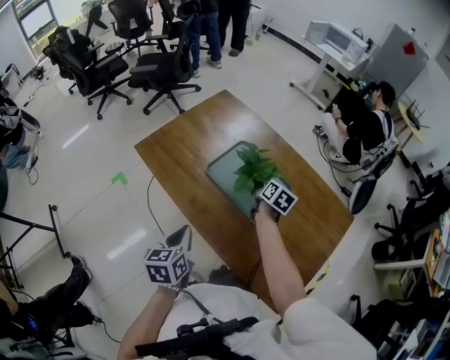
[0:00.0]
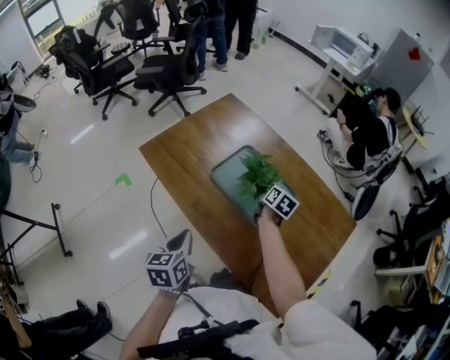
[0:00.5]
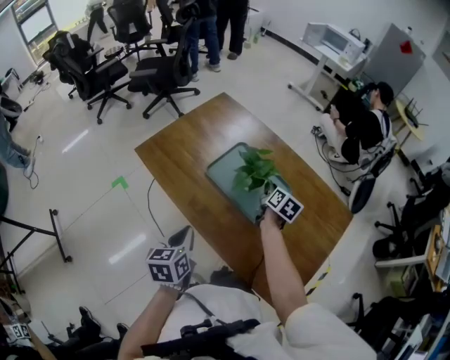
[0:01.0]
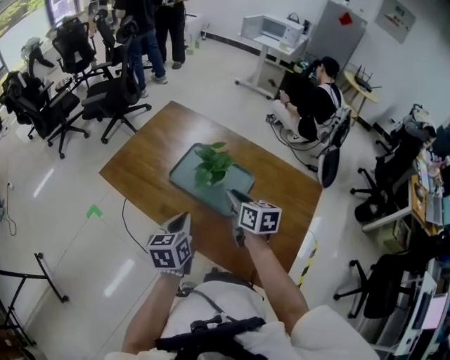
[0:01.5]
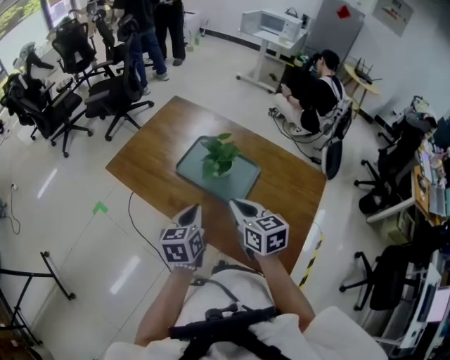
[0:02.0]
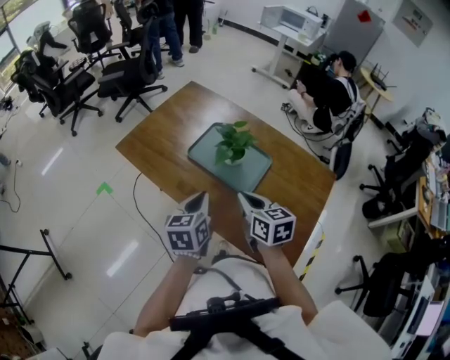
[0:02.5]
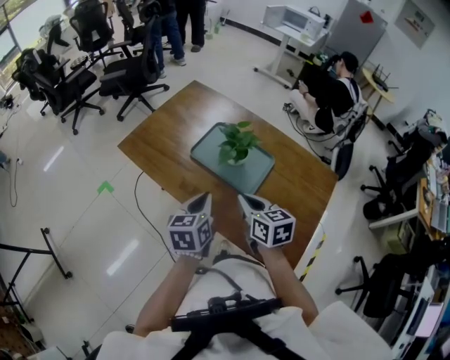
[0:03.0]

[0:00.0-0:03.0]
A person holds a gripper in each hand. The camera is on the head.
0:00.0 to 0:01.5: The right gripper is displaced backward and upward by about 20 cm, and rotates some 20 degrees, while the left gripper moves to the right, roughly 5 cm.
0:01.5 to 0:03.0: The right gripper shifts approximately 10 cm backward and to the left, and closes its fingers.

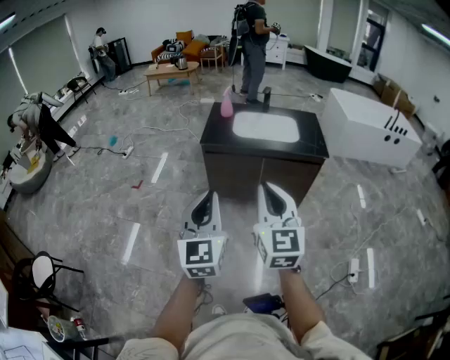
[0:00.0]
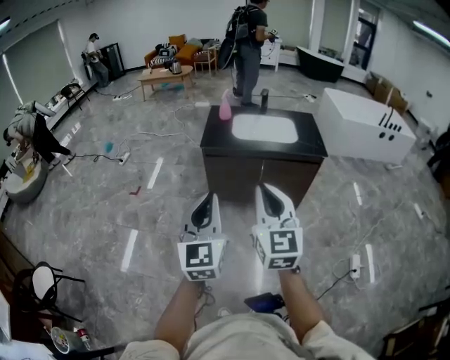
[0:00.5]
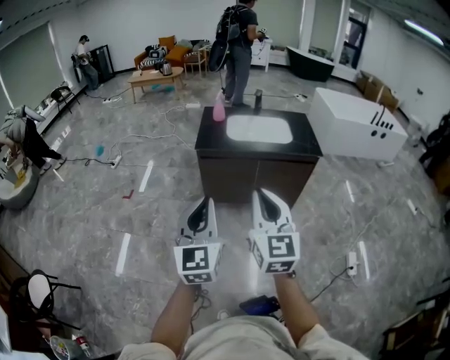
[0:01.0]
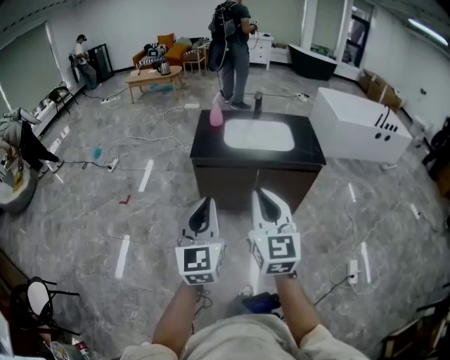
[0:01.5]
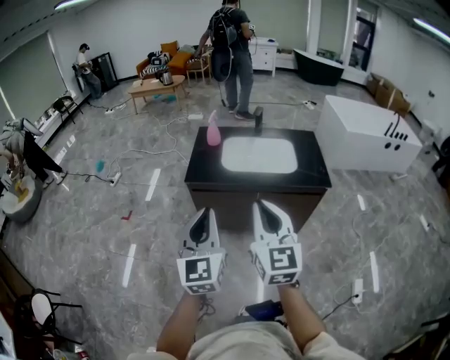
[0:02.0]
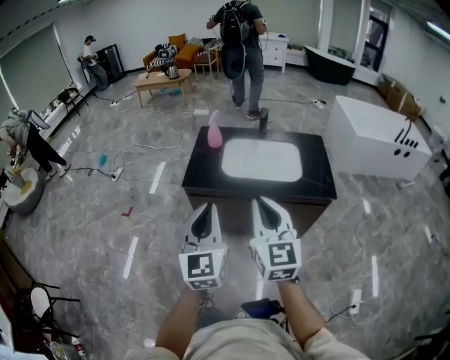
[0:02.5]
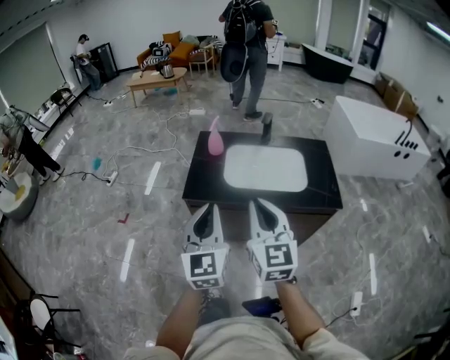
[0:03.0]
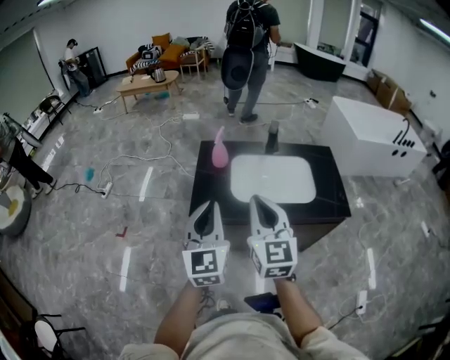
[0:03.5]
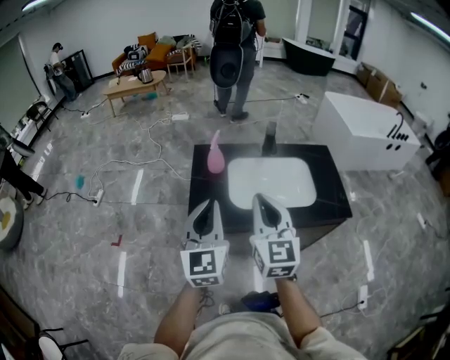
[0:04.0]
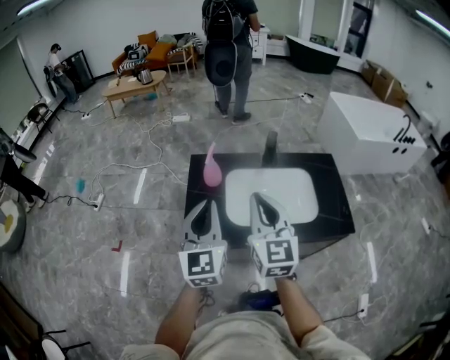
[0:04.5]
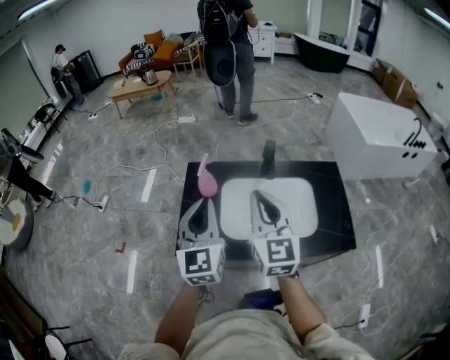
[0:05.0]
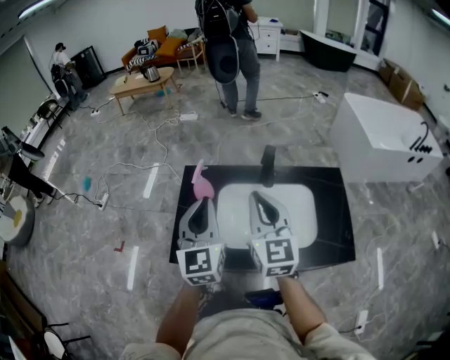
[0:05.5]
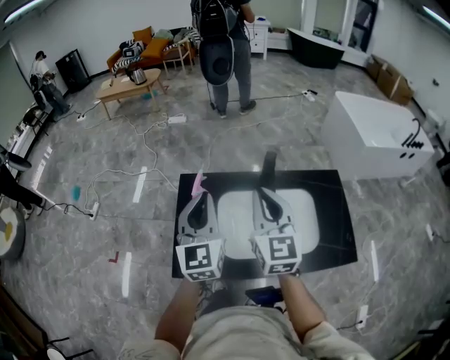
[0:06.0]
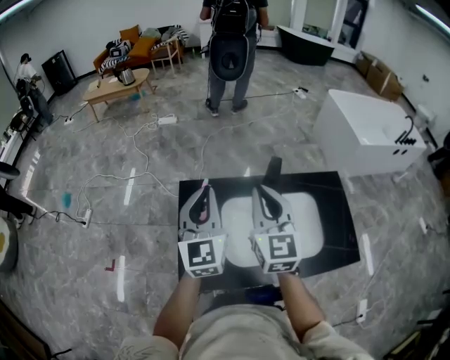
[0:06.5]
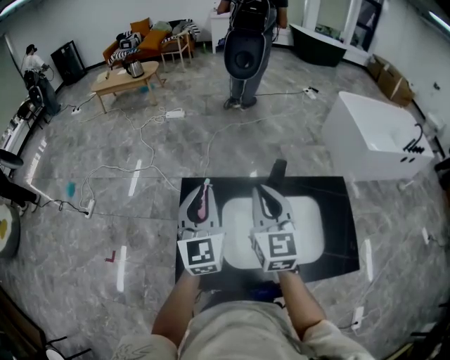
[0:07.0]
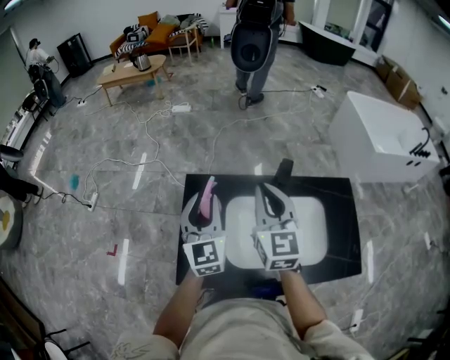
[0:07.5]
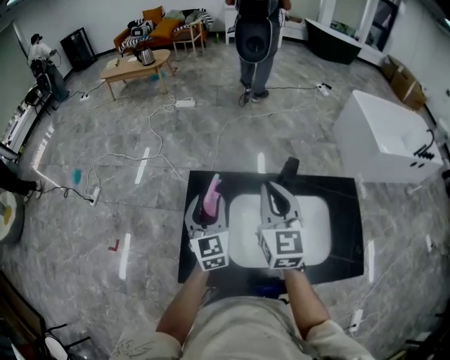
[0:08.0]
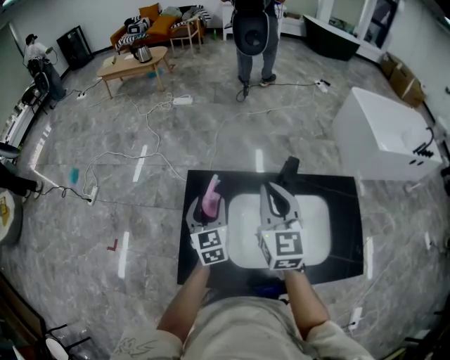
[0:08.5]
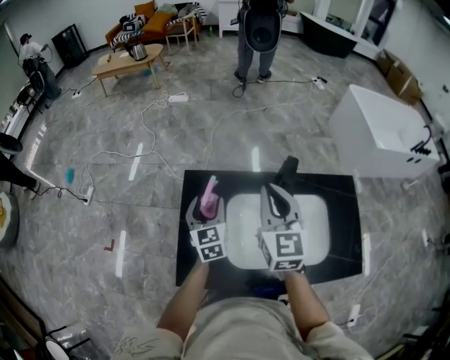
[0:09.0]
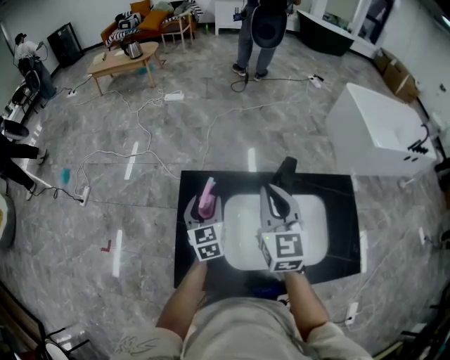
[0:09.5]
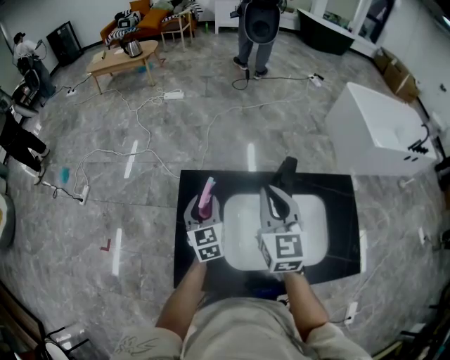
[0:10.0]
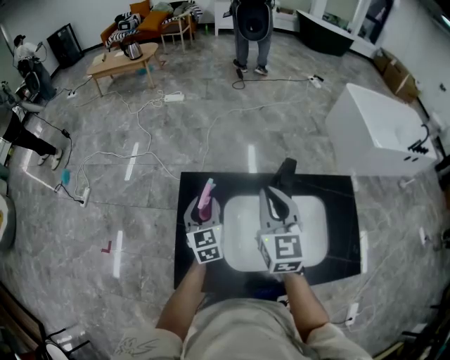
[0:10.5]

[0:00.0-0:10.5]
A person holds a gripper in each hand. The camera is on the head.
0:00.0 to 0:02.0: The grippers both shift forward by roughly 20 cm.
0:02.0 to 0:04.0: Both grippers travel together forward, about 30 cm.
0:04.0 to 0:06.5: The two grippers go about 30 cm forward.
0:06.5 to 0:08.5: The left gripper is displaced downward by approximately 20 cm, rotates roughly 20 degrees, and opens up. The right gripper moves roughly 5 cm.
0:08.5 to 0:10.5: The left gripper closes.

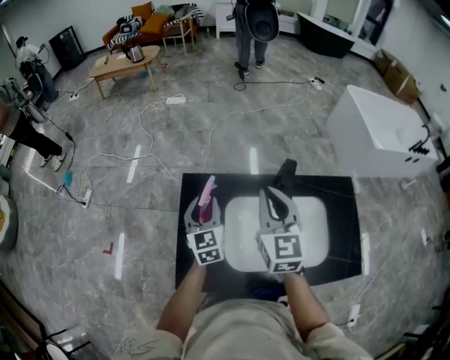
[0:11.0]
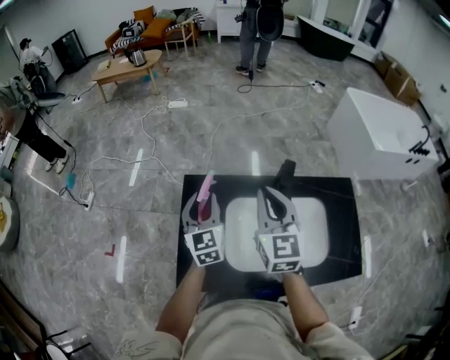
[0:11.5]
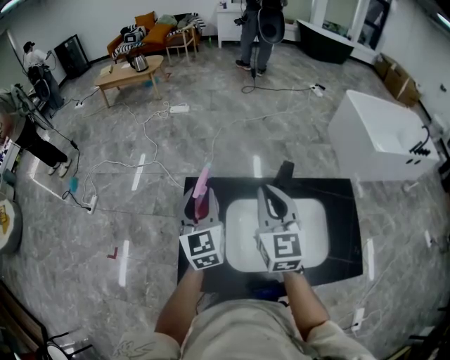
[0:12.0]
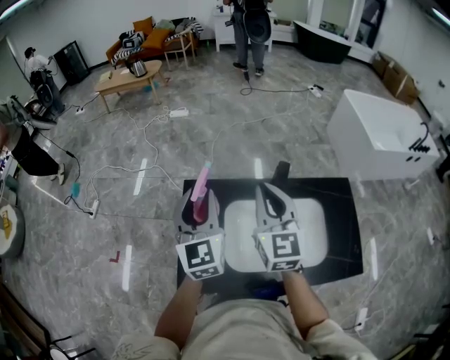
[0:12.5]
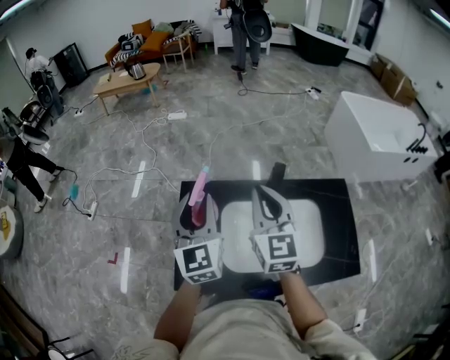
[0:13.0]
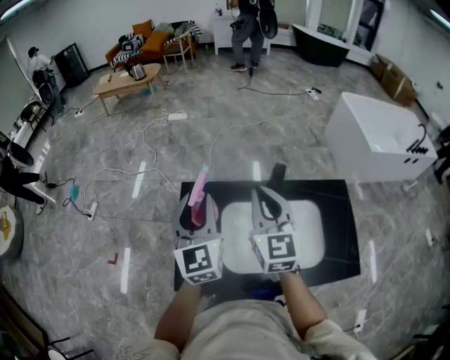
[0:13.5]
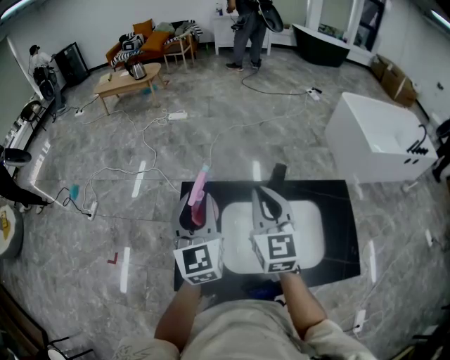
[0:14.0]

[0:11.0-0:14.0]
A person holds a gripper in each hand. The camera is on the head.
0:11.0 to 0:12.5: The left gripper shifts about 15 cm upward.
0:12.5 to 0:14.0: The two grippers keep their place.

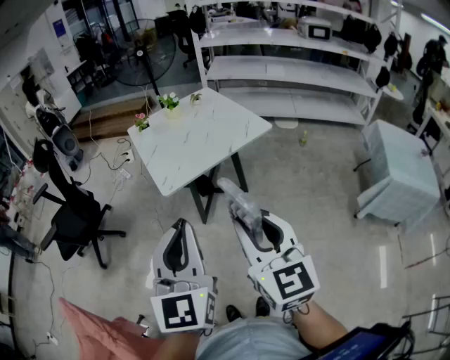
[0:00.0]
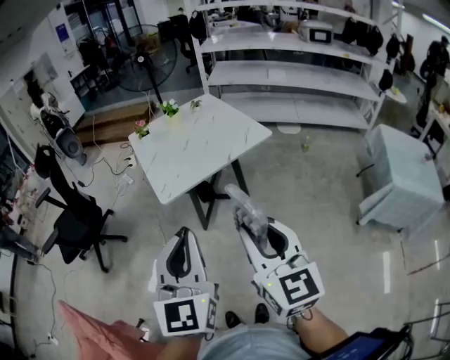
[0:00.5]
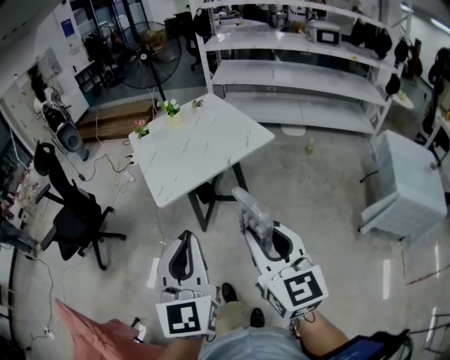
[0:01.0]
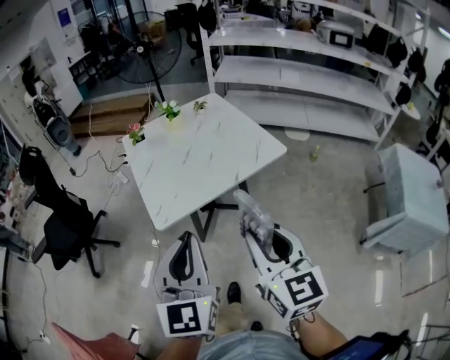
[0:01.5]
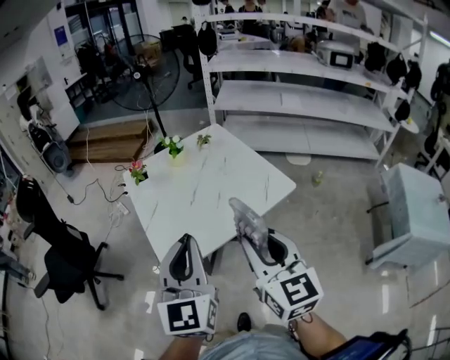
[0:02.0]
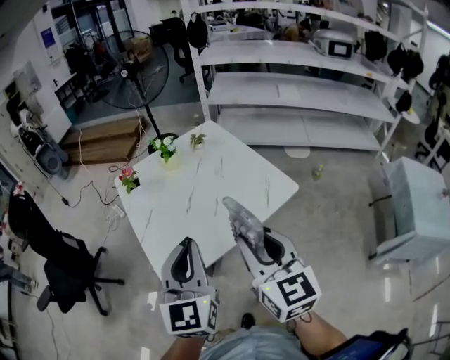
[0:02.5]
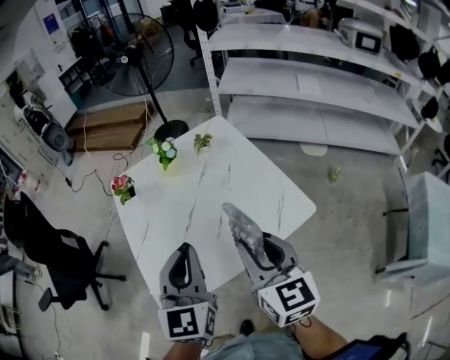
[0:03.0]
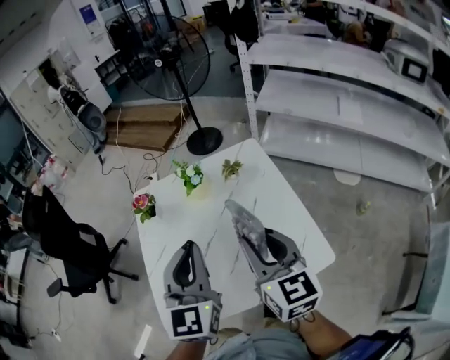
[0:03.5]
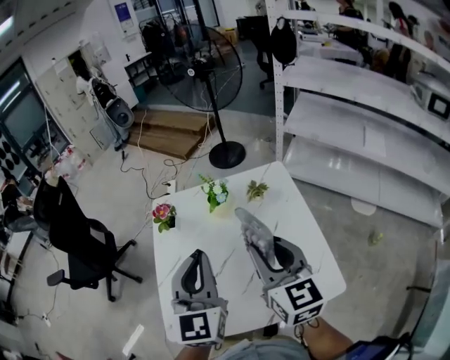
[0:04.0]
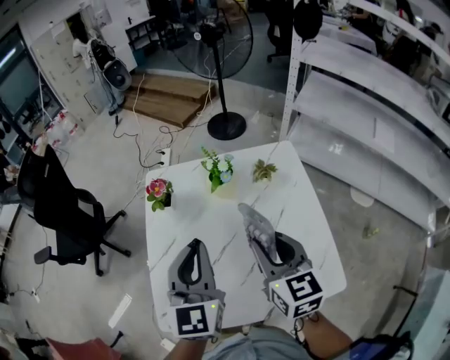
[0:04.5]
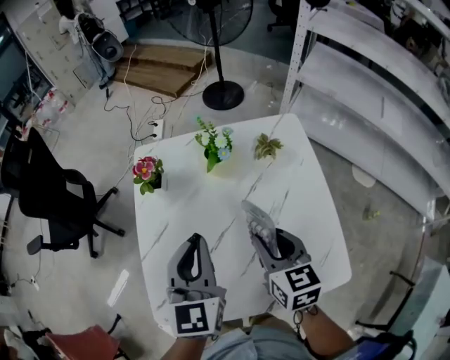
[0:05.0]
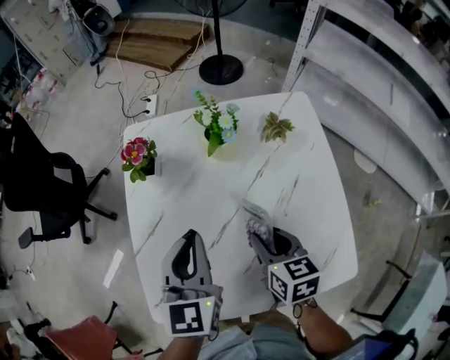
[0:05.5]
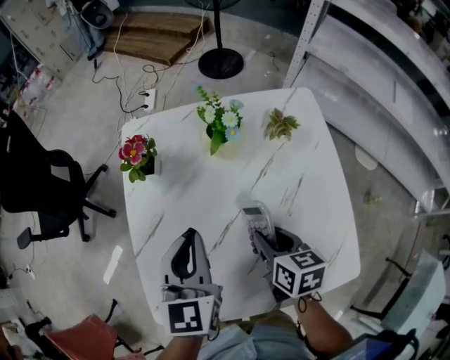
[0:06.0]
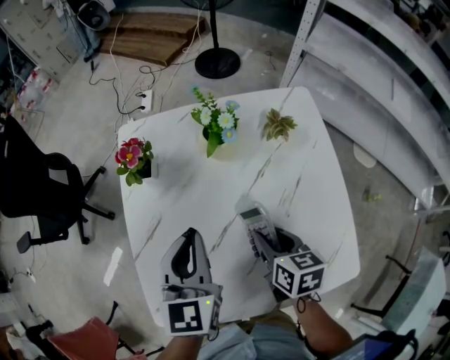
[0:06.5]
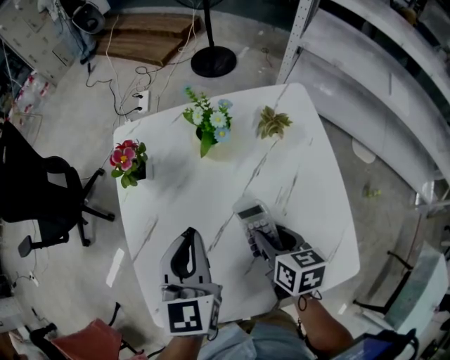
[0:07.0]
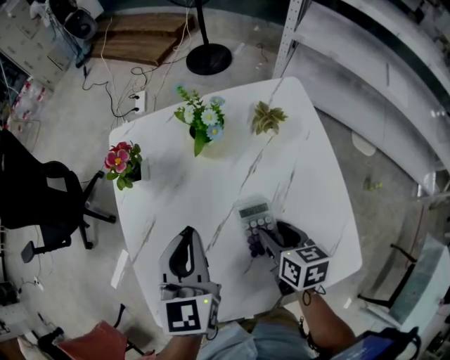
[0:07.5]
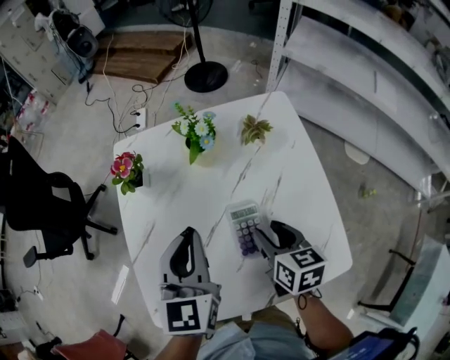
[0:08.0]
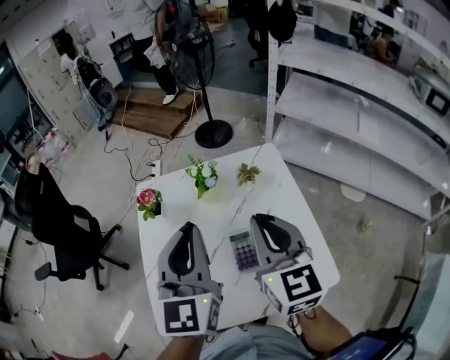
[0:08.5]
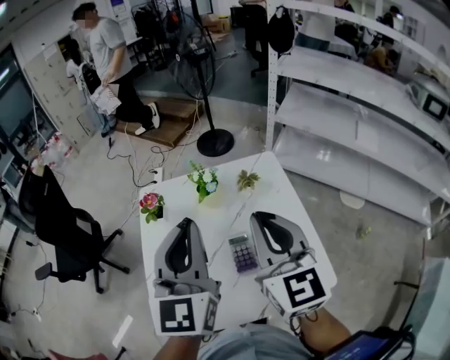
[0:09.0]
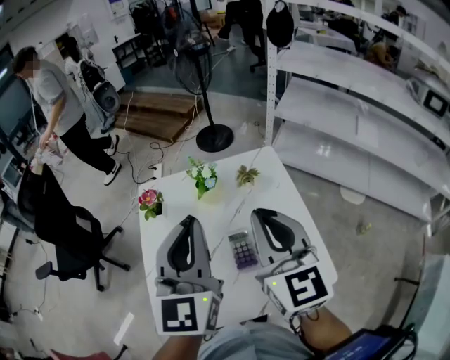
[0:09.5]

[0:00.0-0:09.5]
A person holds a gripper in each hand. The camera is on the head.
0:00.0 to 0:02.0: Both grippers travel together forward, about 30 cm.
0:02.0 to 0:04.0: Both grippers move forward, approximately 35 cm. The right gripper changes its angle by roughly 20 degrees. Meanwhile the left gripper turns by about 20 degrees.
0:04.0 to 0:05.5: The right gripper shifts approximately 25 cm downward, and tips its fingers downward by some 30 degrees; the left gripper goes some 15 cm downward and forward, and changes its angle by some 20 degrees.
0:05.5 to 0:07.5: The right gripper heads downward, covering approximately 5 cm.
0:07.5 to 0:09.5: The right gripper goes roughly 35 cm upward, tips its fingers upward by roughly 40 degrees, and closes up. The left gripper moves upward, roughly 25 cm, and turns by roughly 30 degrees.
